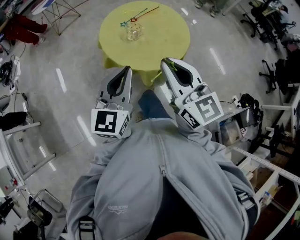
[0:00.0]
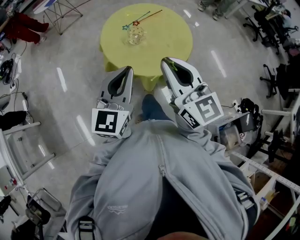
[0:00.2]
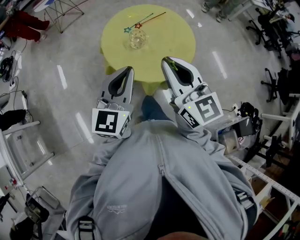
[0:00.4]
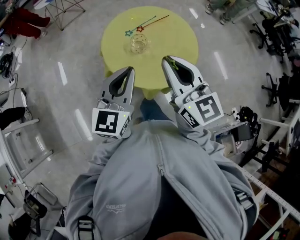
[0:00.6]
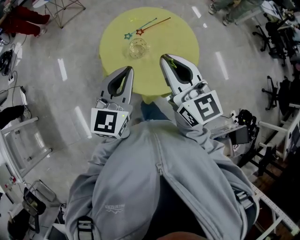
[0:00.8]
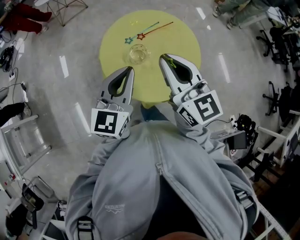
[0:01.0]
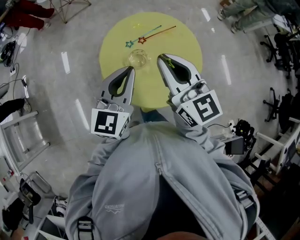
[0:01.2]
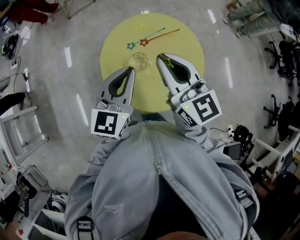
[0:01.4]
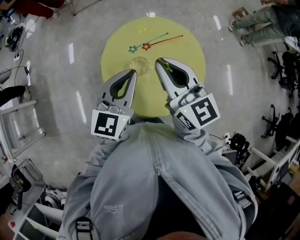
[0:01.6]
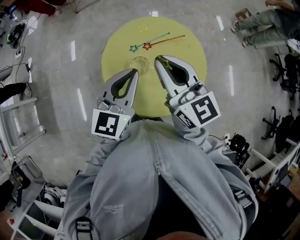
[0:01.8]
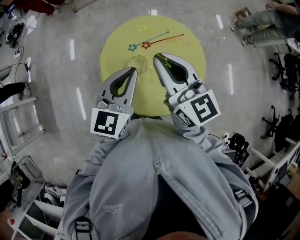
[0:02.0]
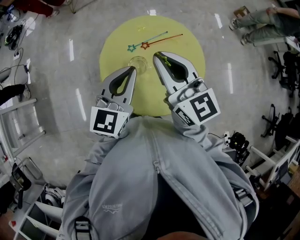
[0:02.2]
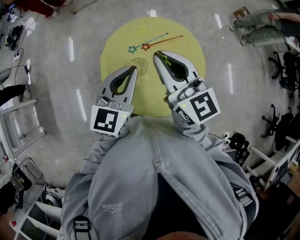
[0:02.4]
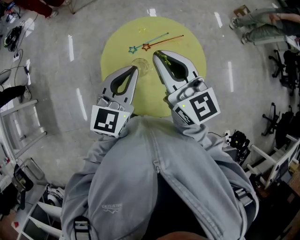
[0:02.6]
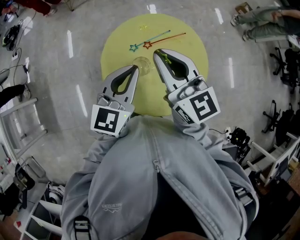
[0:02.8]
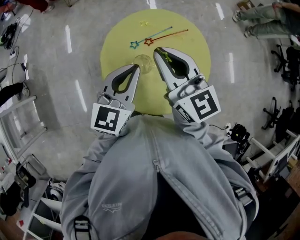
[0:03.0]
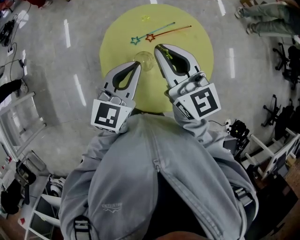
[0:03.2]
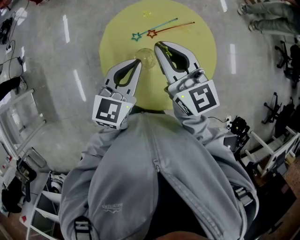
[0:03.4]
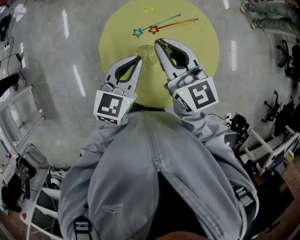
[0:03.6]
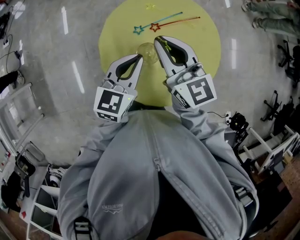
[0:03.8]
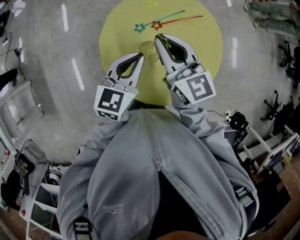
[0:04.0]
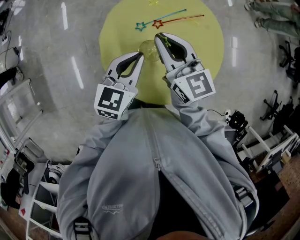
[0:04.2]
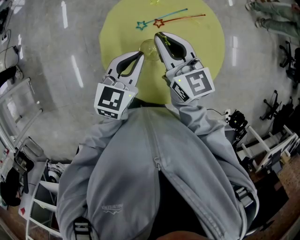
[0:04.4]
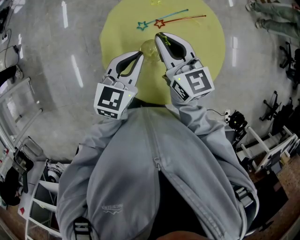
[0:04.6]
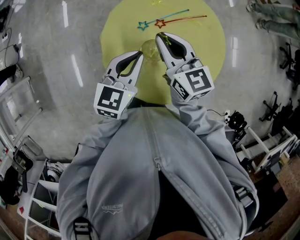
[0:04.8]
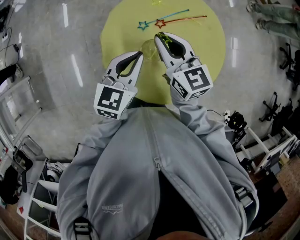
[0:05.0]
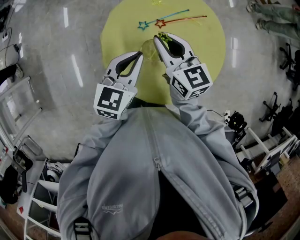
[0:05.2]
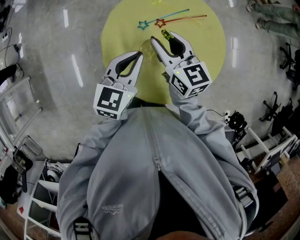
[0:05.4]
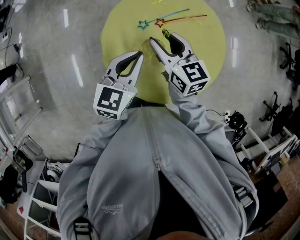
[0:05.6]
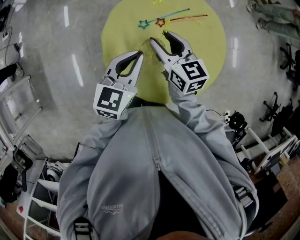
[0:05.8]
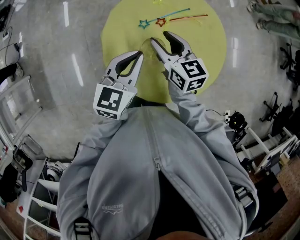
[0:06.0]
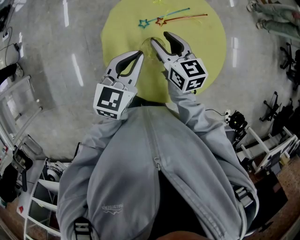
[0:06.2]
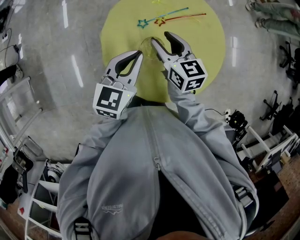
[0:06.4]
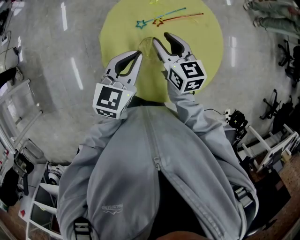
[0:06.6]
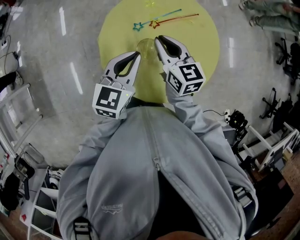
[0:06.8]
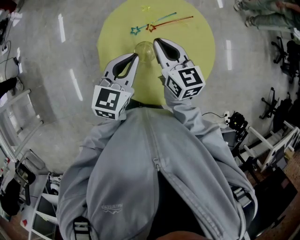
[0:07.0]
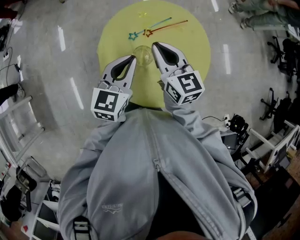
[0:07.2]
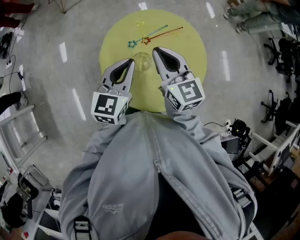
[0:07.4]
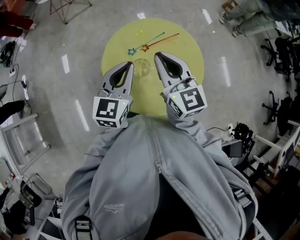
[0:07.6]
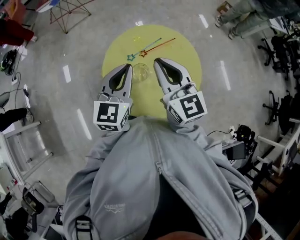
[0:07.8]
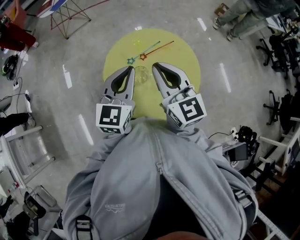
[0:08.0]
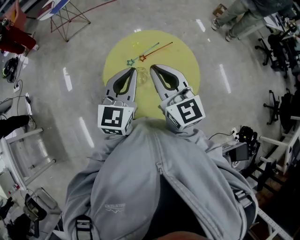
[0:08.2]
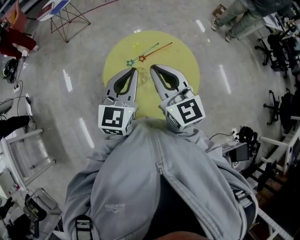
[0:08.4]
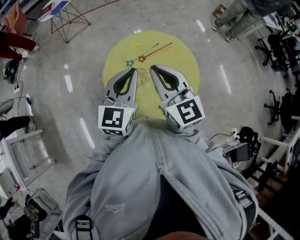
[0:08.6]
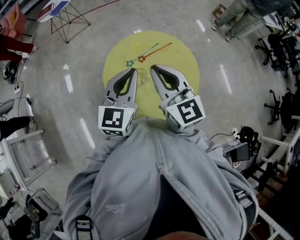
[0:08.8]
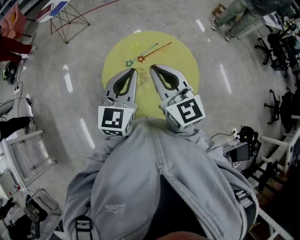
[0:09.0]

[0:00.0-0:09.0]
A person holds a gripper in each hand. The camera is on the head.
0.0 to 1.6 s: Both grippers move forward, approximately 35 cm.
1.6 to 3.0 s: Both grippers move forward, approximately 5 cm.
3.0 to 4.4 s: Both grippers move downward, about 15 cm.
4.4 to 6.0 s: The right gripper moves downward, approximately 5 cm, and opens.
6.0 to 7.6 s: The left gripper is displaced upward by some 15 cm. The right gripper travels upward by approximately 20 cm, rotates some 30 degrees, and closes up.
7.6 to 9.0 s: The left gripper is displaced upward by approximately 5 cm, while the right gripper shifts some 5 cm backward.

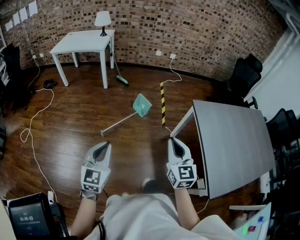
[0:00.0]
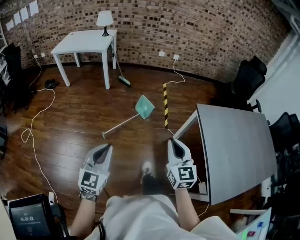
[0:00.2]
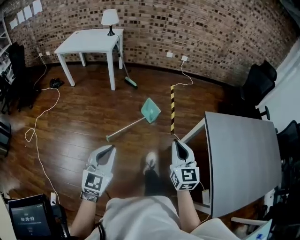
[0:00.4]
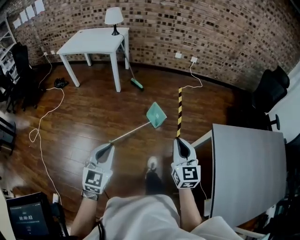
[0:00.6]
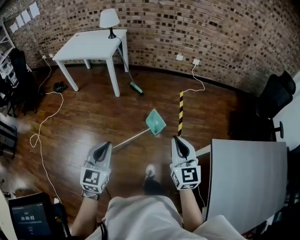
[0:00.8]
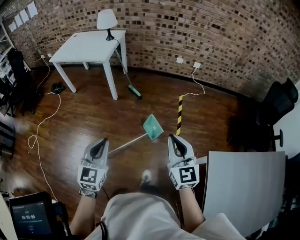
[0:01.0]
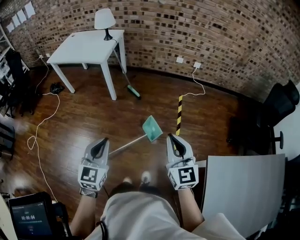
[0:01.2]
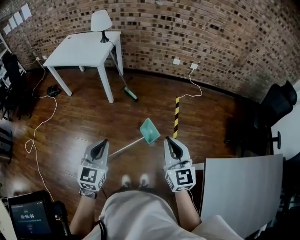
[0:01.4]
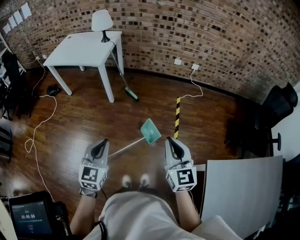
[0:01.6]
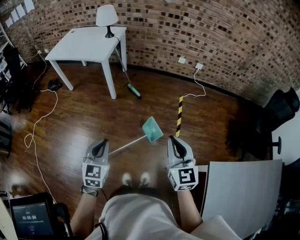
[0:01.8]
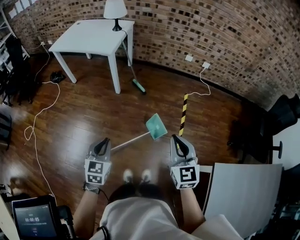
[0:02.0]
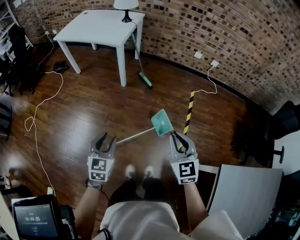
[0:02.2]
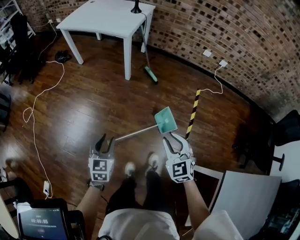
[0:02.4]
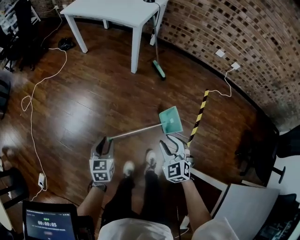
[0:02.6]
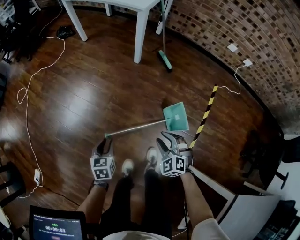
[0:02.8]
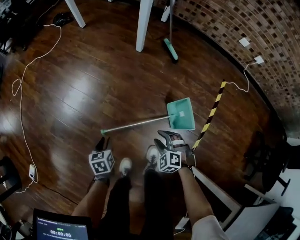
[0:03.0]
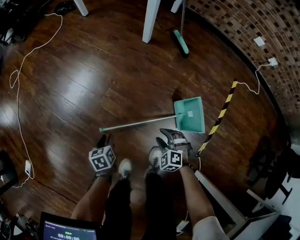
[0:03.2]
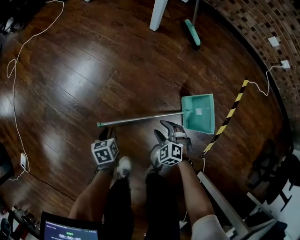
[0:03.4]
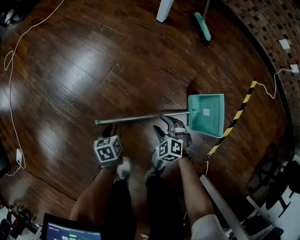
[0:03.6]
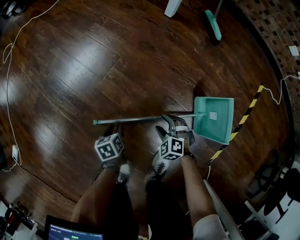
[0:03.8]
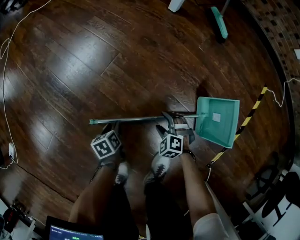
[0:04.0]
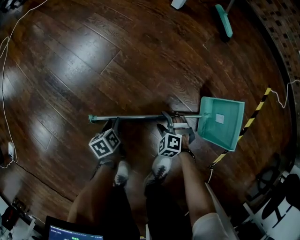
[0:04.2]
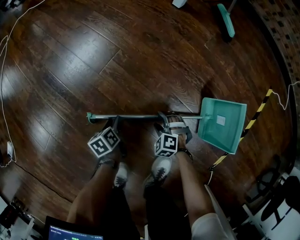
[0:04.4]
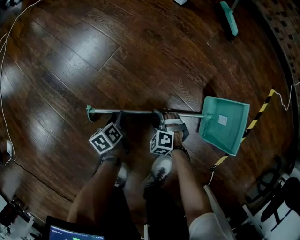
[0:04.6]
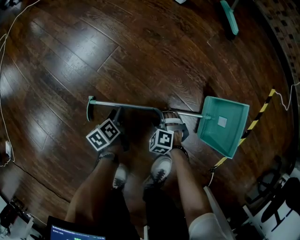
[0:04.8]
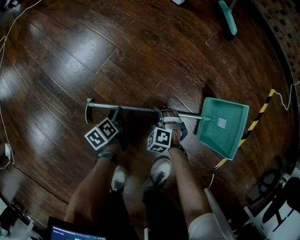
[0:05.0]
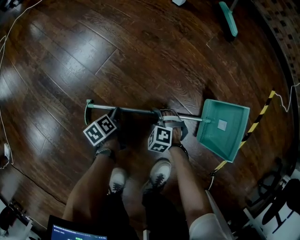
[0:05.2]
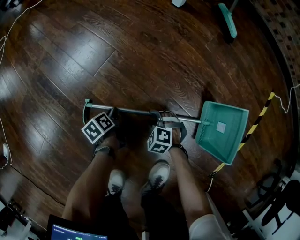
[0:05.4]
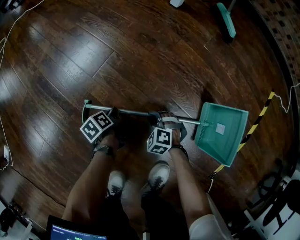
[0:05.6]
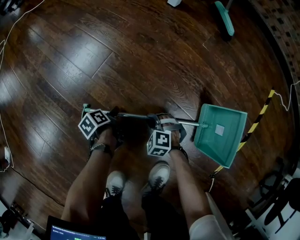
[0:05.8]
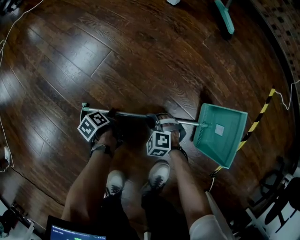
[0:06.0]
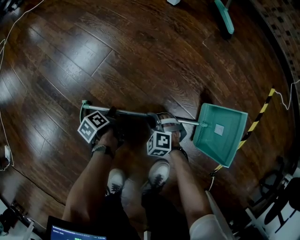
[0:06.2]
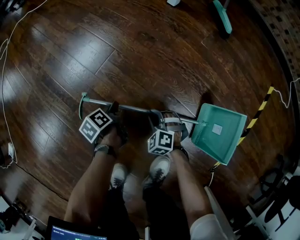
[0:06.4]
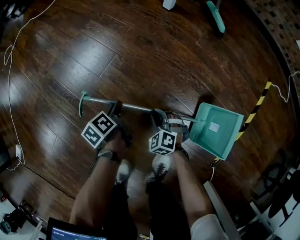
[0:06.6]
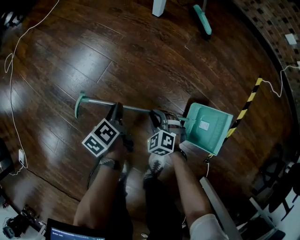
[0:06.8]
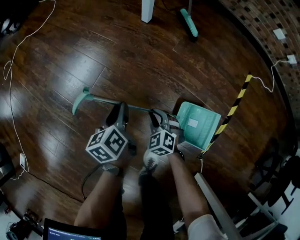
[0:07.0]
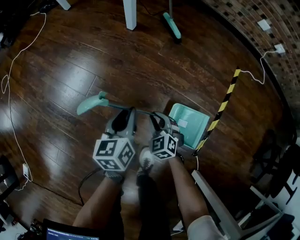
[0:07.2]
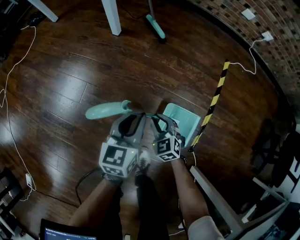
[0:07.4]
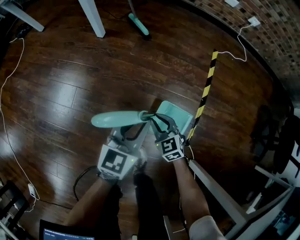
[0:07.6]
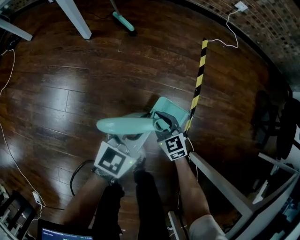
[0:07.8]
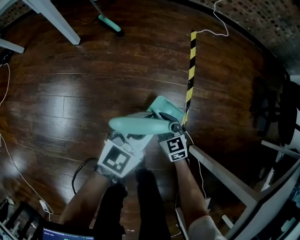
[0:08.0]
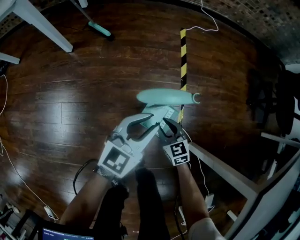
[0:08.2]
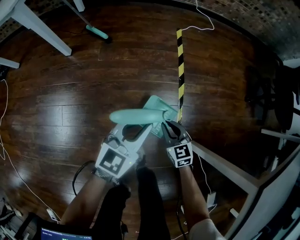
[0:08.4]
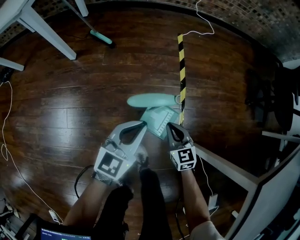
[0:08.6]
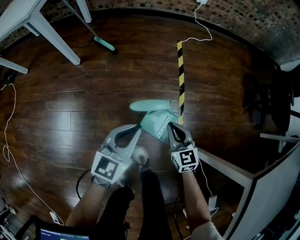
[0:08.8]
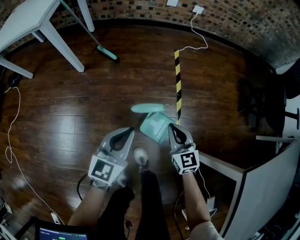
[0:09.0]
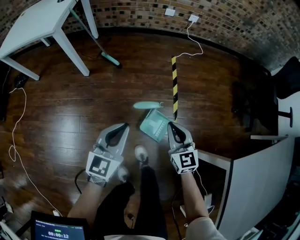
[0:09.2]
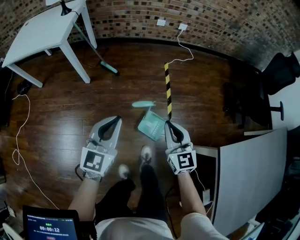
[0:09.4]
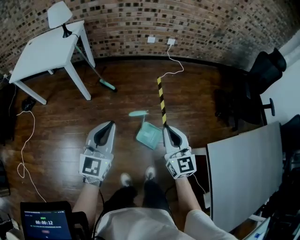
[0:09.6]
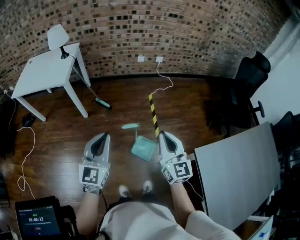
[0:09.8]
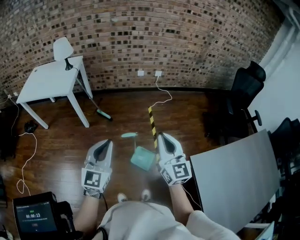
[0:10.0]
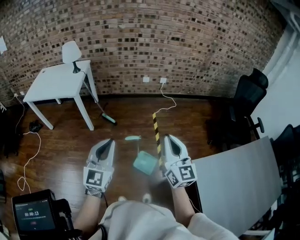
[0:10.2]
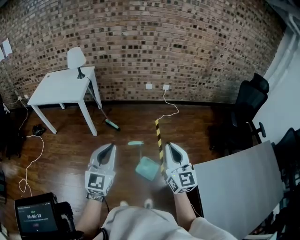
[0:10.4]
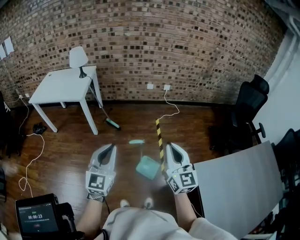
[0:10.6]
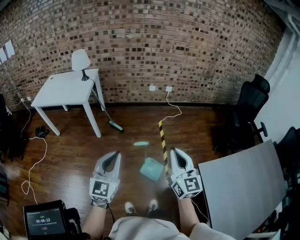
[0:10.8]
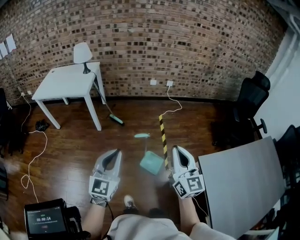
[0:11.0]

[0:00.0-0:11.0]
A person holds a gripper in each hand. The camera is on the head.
0.0 to 1.6 s: The two grippers travel together, forward, about 50 cm.
1.6 to 3.2 s: The two grippers go about 70 cm downward. The left gripper tilts its fingers some 40 degrees downward, and opens; the right gripper points its fingers about 50 degrees further downward, and opens its fingers.
3.2 to 4.8 s: The grippers both shift downward by about 30 cm. The left gripper turns by about 30 degrees.
4.8 to 6.2 s: The right gripper closes.
6.2 to 7.8 s: The right gripper heads upward, covering approximately 35 cm, and rotates around the line of its fingers by some 60 degrees, clockwise from behind; the left gripper is displaced upward by about 50 cm, and tilts its fingers about 50 degrees upward.
7.8 to 9.4 s: The two grippers go approximately 40 cm upward. The right gripper turns by roughly 40 degrees.
9.4 to 11.0 s: Both grippers travel together upward and backward, about 35 cm. The right gripper turns by about 20 degrees.

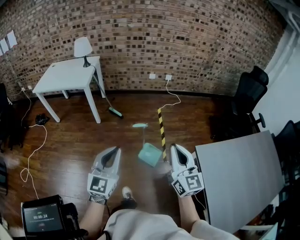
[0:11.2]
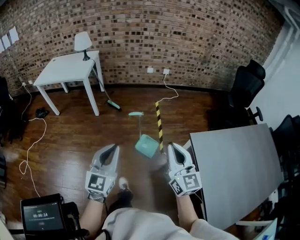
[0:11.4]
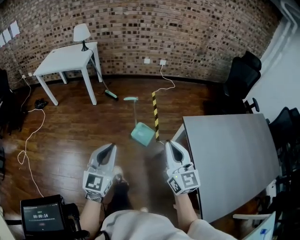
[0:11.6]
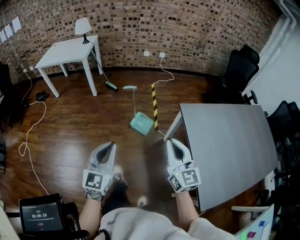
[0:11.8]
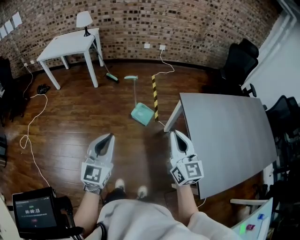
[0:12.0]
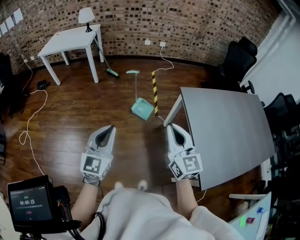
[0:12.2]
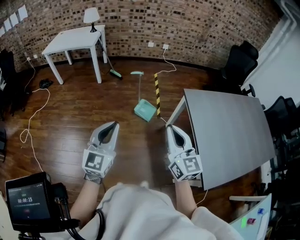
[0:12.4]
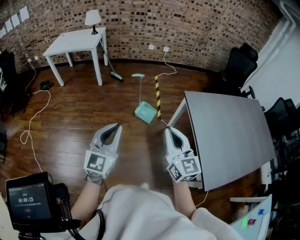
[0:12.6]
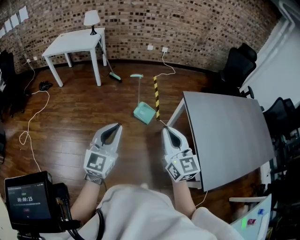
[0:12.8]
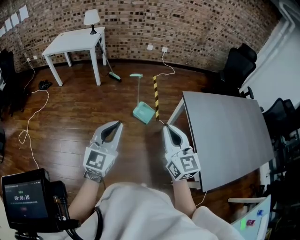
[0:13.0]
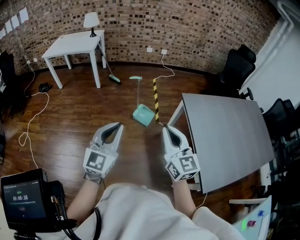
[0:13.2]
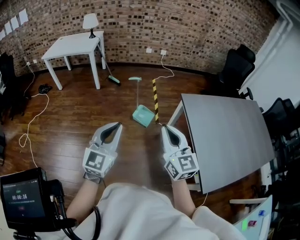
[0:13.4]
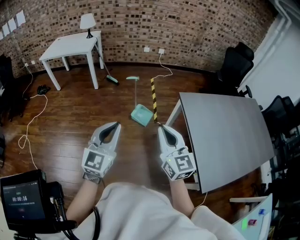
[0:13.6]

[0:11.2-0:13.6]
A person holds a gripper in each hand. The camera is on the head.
11.2 to 12.4 s: The grippers both shift backward by approximately 35 cm.
12.4 to 13.6 s: The grippers stay close to where they were, moving slightly.

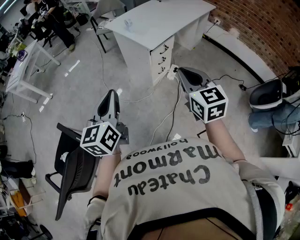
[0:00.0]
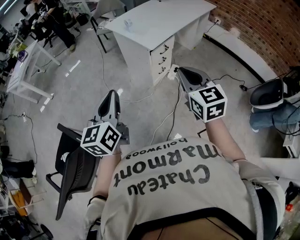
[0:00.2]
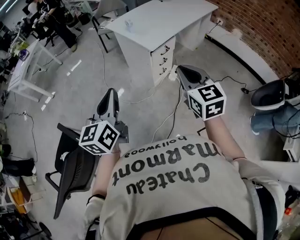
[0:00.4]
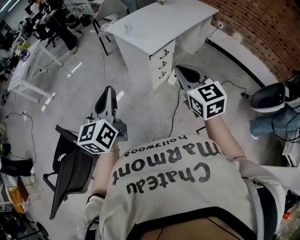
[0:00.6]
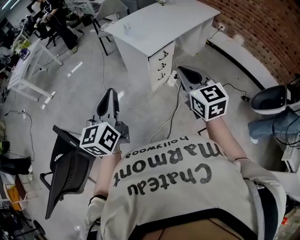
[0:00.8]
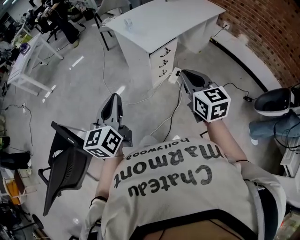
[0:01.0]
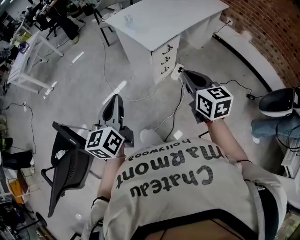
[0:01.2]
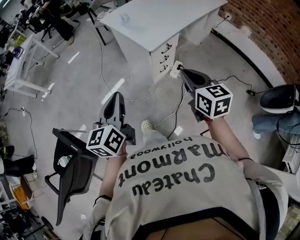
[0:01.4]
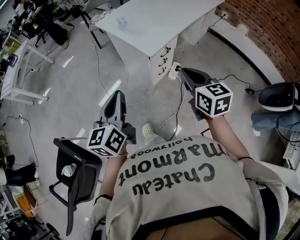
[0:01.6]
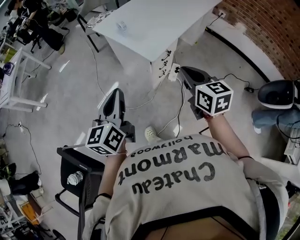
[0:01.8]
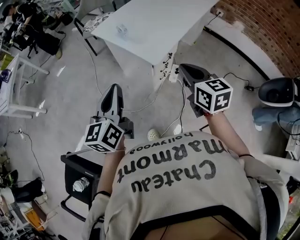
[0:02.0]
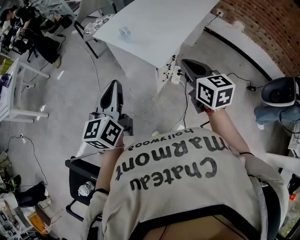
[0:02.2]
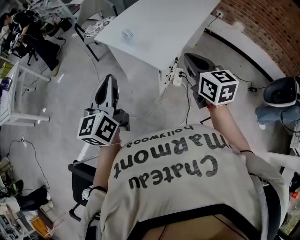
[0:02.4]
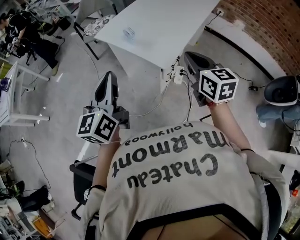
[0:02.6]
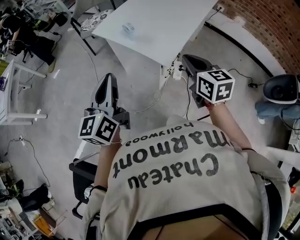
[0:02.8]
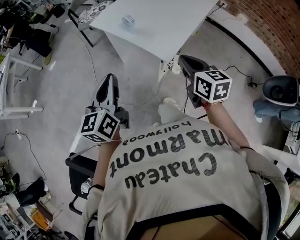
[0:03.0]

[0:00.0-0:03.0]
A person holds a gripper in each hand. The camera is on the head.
0.0 to 1.6 s: The left gripper heads forward, covering approximately 20 cm. The right gripper travels forward and downward by some 20 cm.
1.6 to 3.0 s: Both grippers move forward and to the left, some 20 cm.
